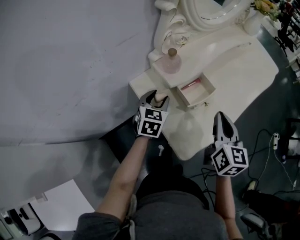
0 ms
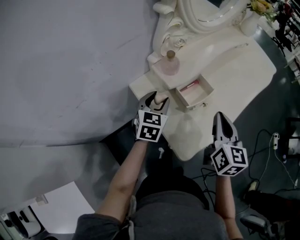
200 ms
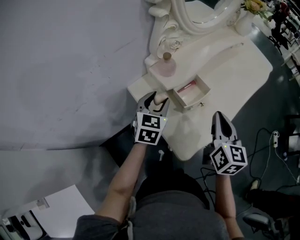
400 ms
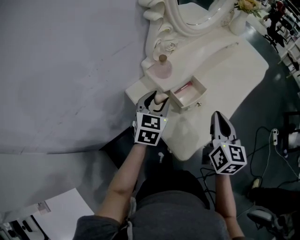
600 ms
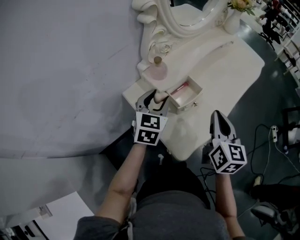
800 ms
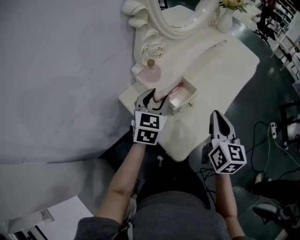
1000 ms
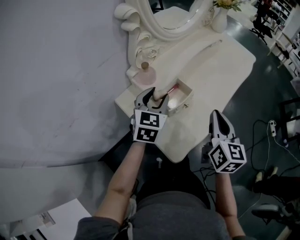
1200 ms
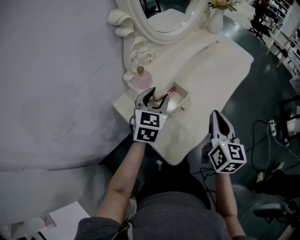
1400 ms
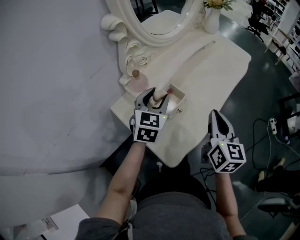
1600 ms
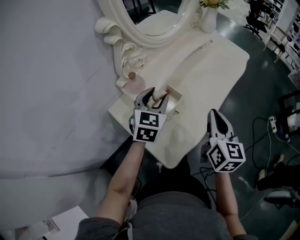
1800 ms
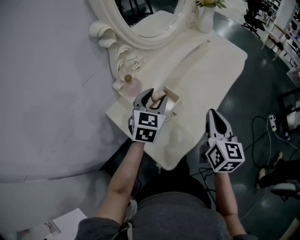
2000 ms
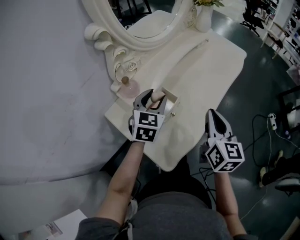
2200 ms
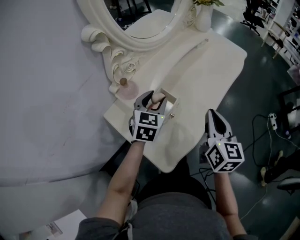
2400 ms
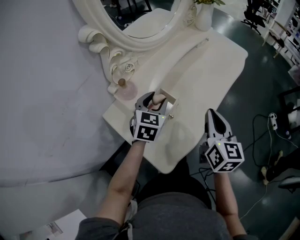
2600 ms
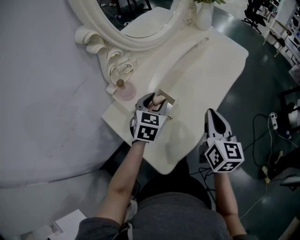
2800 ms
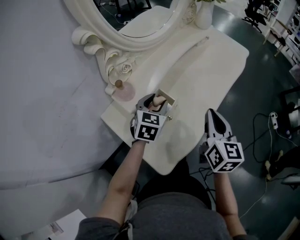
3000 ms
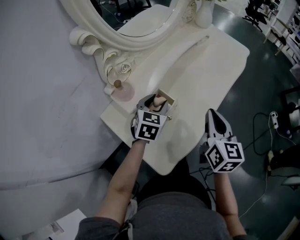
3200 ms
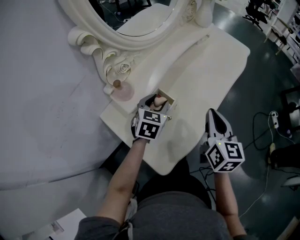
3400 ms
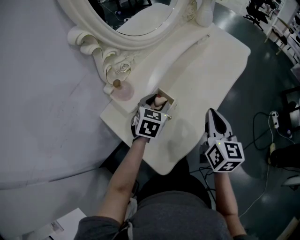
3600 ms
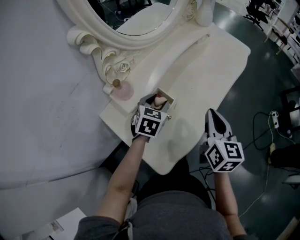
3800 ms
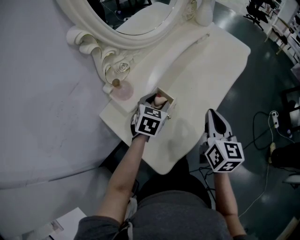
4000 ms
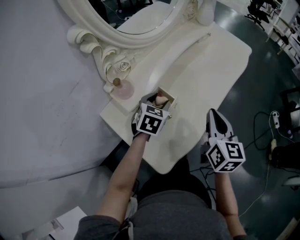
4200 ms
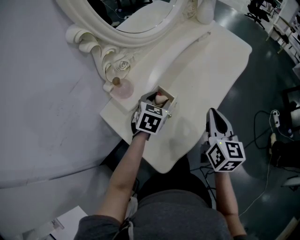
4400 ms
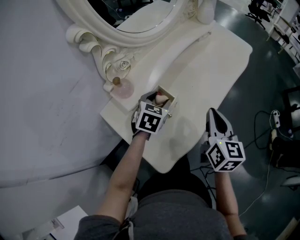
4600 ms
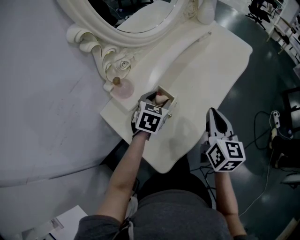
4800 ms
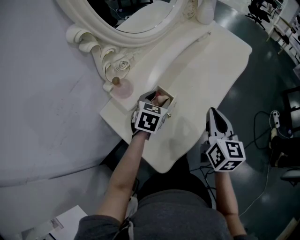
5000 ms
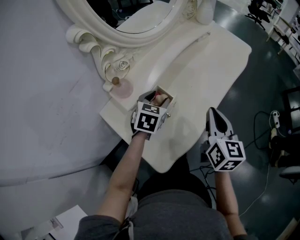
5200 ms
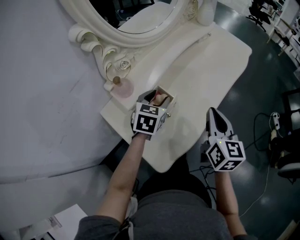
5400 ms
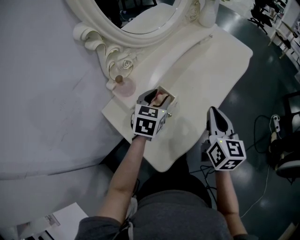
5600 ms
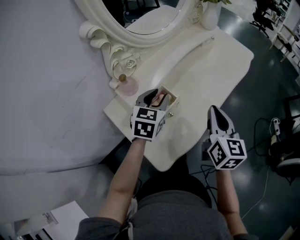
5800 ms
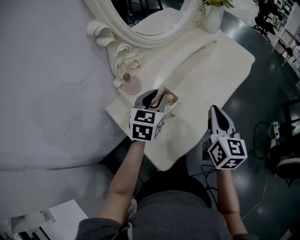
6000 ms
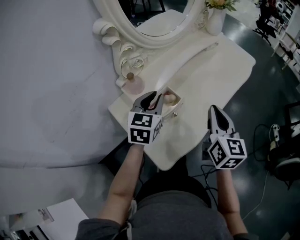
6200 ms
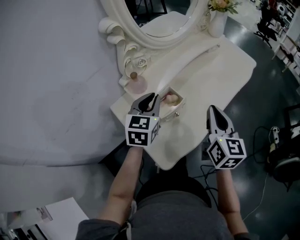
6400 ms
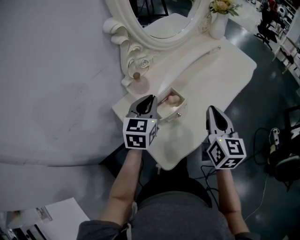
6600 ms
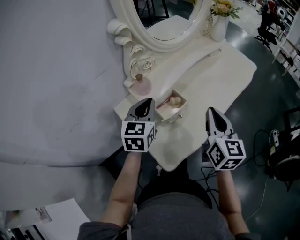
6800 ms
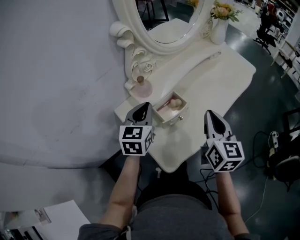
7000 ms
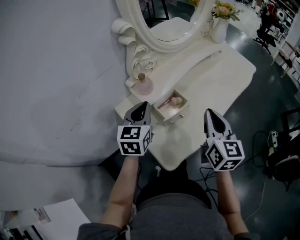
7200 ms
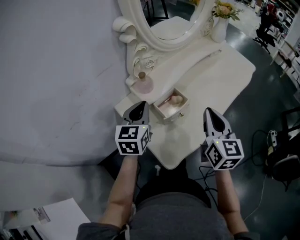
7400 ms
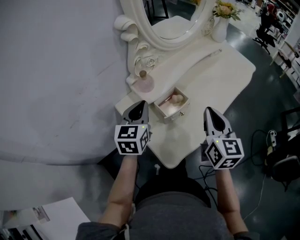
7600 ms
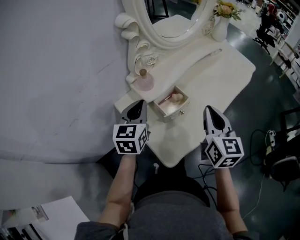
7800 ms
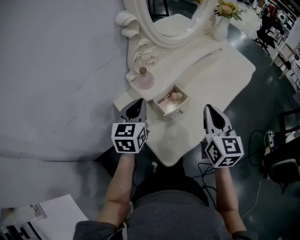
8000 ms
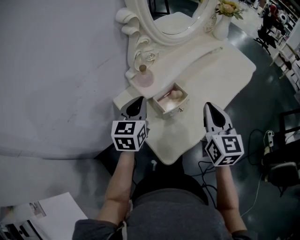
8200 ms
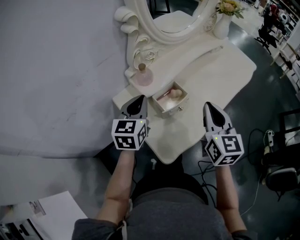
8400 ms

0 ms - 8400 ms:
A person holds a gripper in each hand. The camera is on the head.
0 ms - 1400 ms: The right gripper moves to the right, about 5 cm. The left gripper shifts some 15 cm upward and to the right.
1400 ms - 2800 ms: The right gripper moves forward, about 5 cm, while the left gripper is displaced downward, forward and to the right by about 10 cm.
2800 ms - 4200 ms: The grippers move only a little.
4200 ms - 5600 ms: The left gripper heads upward, covering about 5 cm.
5600 ms - 7000 ms: The left gripper goes roughly 15 cm to the left, backward and upward, rotates roughly 20 degrees, and closes up, while the right gripper heads to the left, covering approximately 5 cm.
7000 ms - 8400 ms: The grippers stay close to where they were, moving slightly.

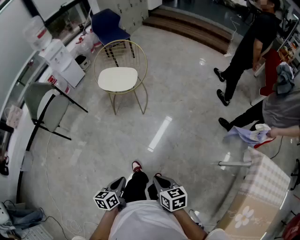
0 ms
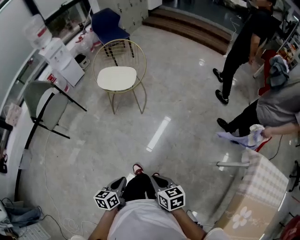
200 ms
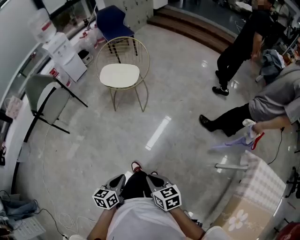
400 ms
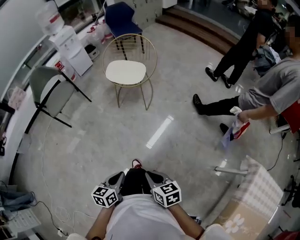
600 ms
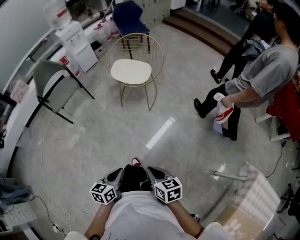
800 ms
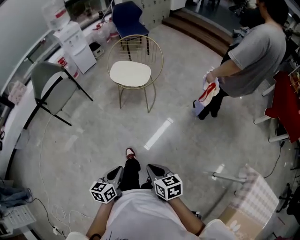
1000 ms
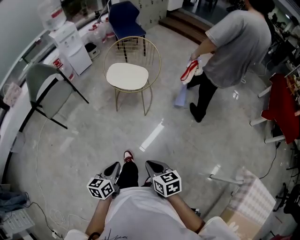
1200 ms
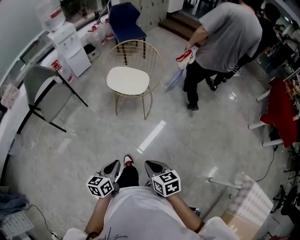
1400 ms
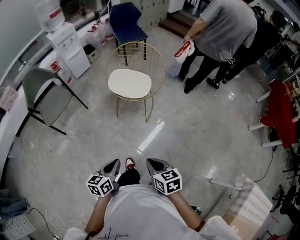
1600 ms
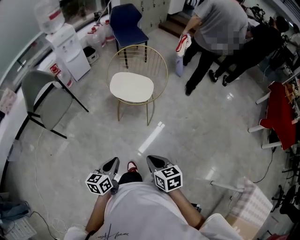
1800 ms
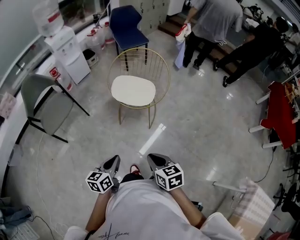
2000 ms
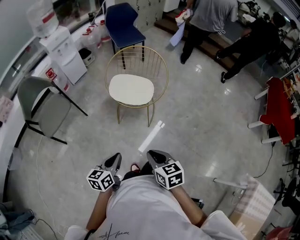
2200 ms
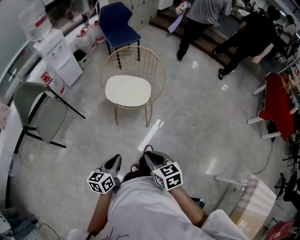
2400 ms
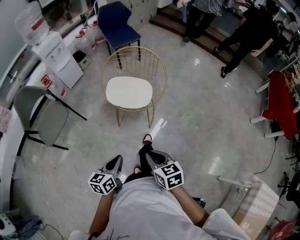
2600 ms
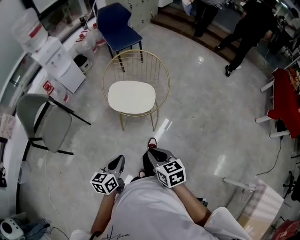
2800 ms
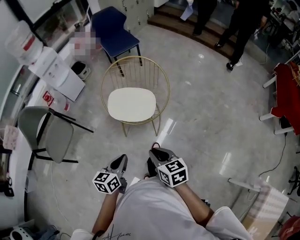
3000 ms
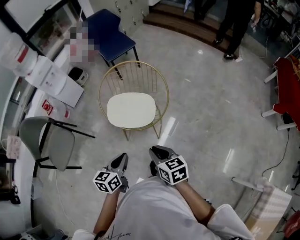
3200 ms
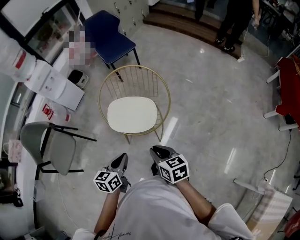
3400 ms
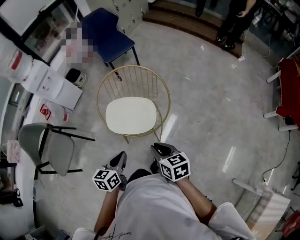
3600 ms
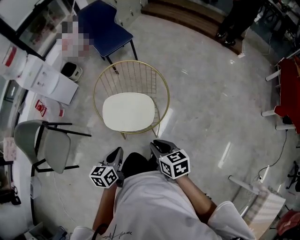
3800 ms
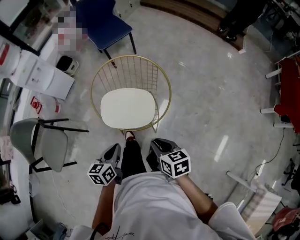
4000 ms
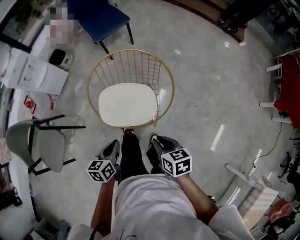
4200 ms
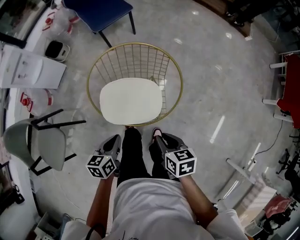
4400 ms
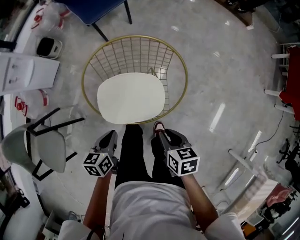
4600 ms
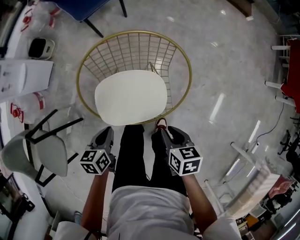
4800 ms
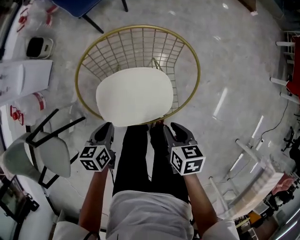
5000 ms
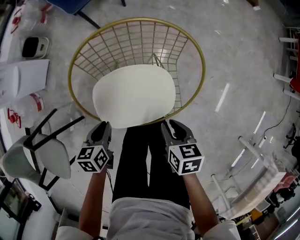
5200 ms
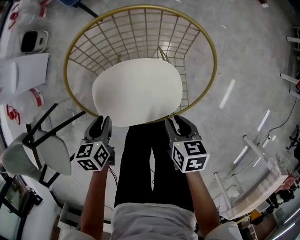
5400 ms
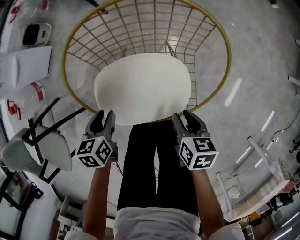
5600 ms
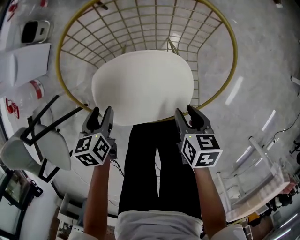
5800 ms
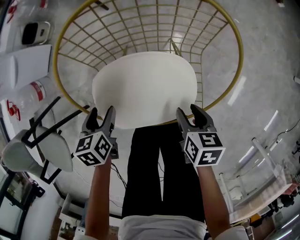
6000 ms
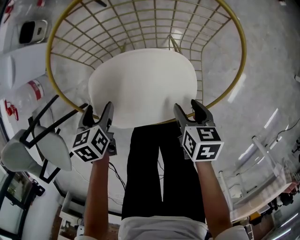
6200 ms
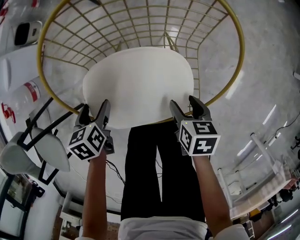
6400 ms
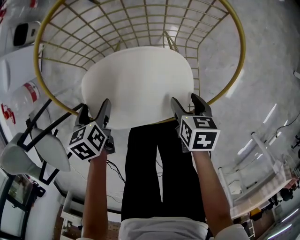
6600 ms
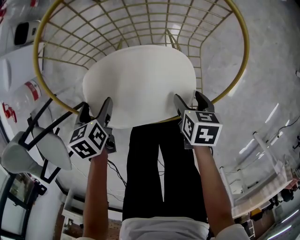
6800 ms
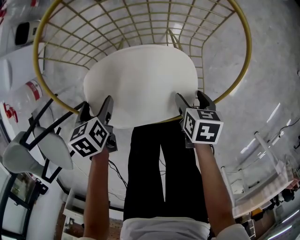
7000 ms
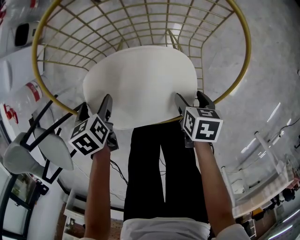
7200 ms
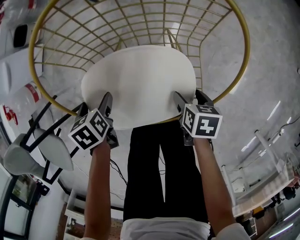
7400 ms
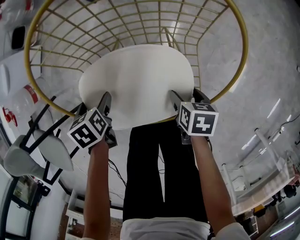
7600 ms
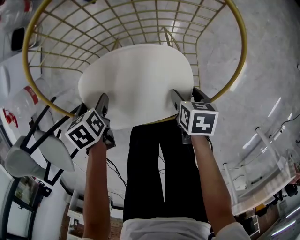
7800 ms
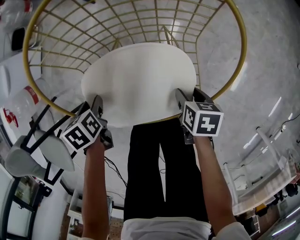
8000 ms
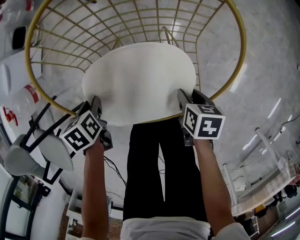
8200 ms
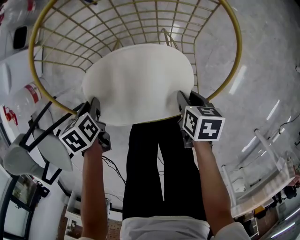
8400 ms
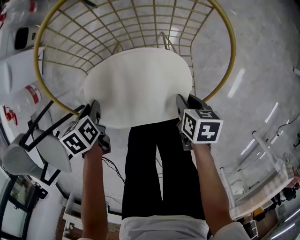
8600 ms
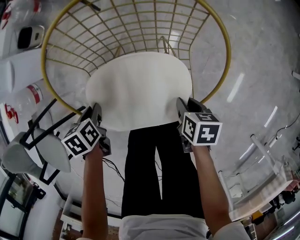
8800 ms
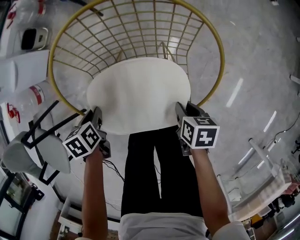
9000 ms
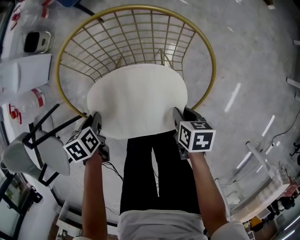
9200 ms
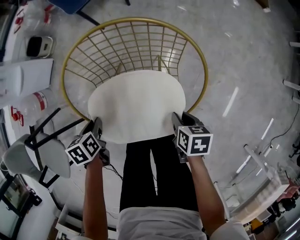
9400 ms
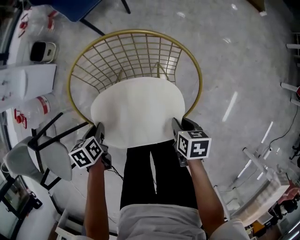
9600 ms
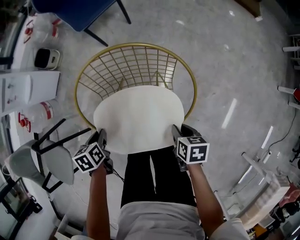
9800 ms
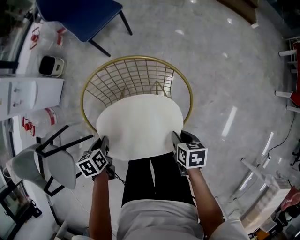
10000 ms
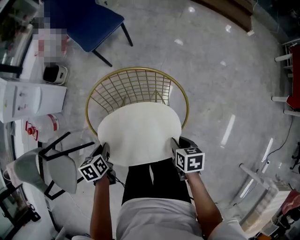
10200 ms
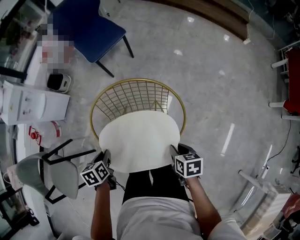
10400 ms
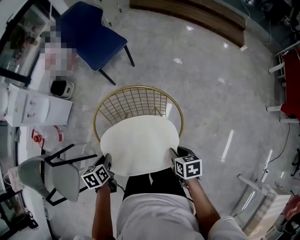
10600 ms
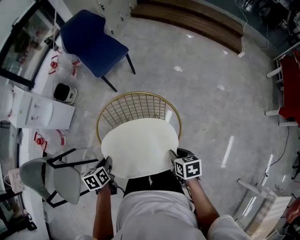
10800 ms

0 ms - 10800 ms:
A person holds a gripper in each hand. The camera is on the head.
0 ms - 1600 ms: The left gripper travels forward by about 25 cm. Meanwhile the right gripper shifts about 25 cm forward and to the left.
1600 ms - 3000 ms: Both grippers travel together forward, some 30 cm.
3000 ms - 4600 ms: The two grippers go approximately 35 cm forward and downward. The right gripper changes its angle by some 30 degrees.
4600 ms - 6200 ms: The grippers both shift downward and forward by approximately 25 cm. The right gripper opens. Meanwhile the left gripper changes its angle by about 20 degrees, and opens.
6200 ms - 7800 ms: The right gripper travels downward by about 10 cm.
7800 ms - 9200 ms: Both grippers travel together upward, roughly 10 cm. The right gripper closes its fingers. Meanwhile the left gripper closes up.
9200 ms - 10800 ms: The grippers both shift upward by some 25 cm.

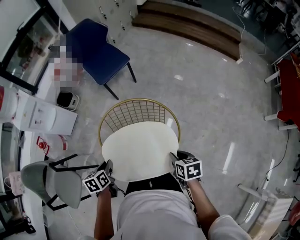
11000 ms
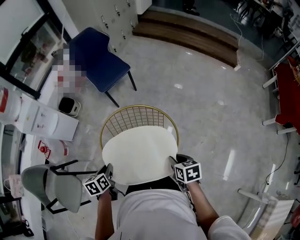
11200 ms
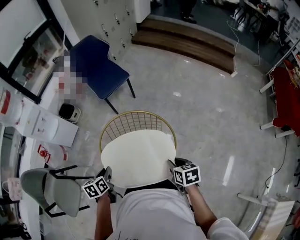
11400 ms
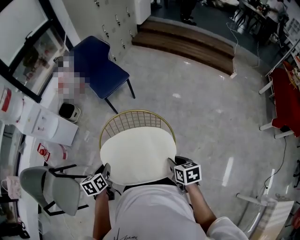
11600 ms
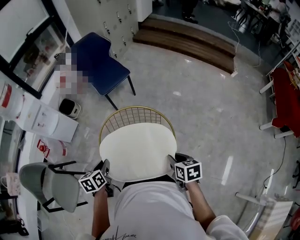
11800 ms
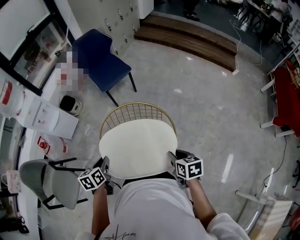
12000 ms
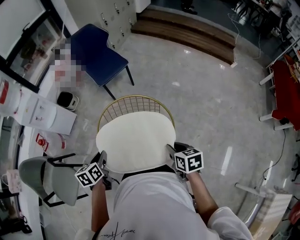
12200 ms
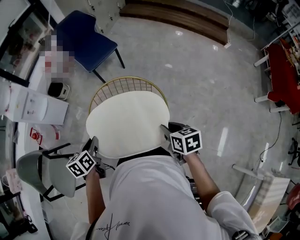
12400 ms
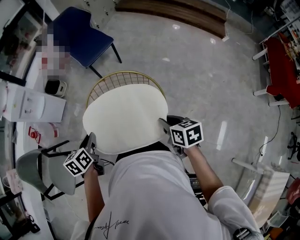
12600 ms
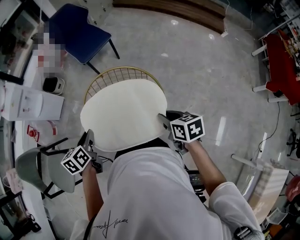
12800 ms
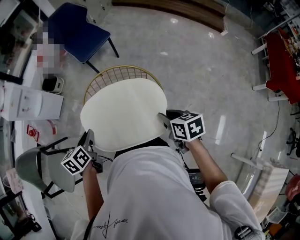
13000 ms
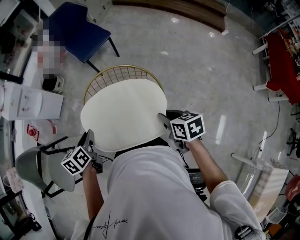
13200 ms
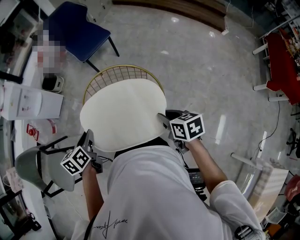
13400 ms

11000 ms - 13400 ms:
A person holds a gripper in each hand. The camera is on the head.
11000 ms - 12200 ms: Both grippers move upward, about 5 cm.
12200 ms - 13400 ms: There are only small adjustments of the grippers.

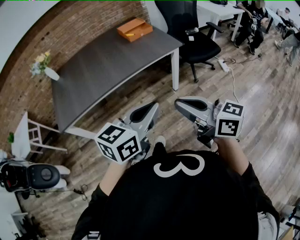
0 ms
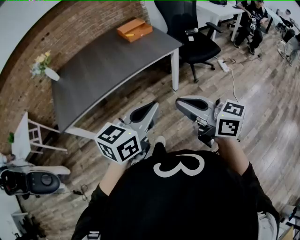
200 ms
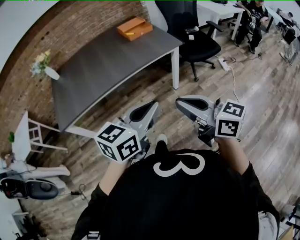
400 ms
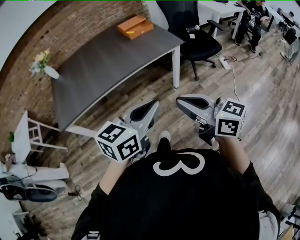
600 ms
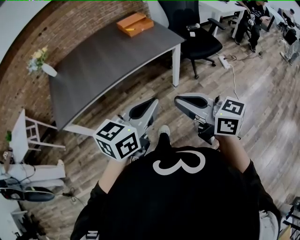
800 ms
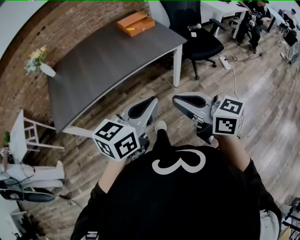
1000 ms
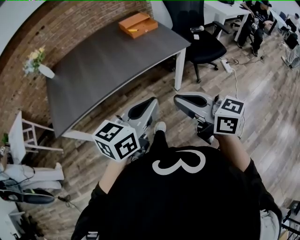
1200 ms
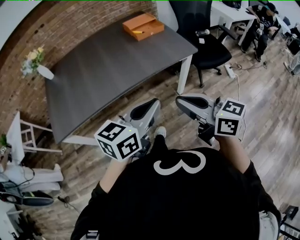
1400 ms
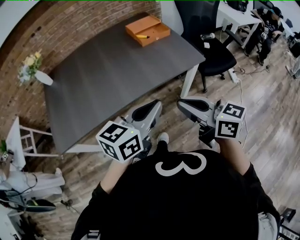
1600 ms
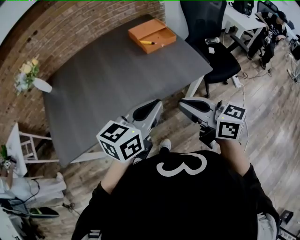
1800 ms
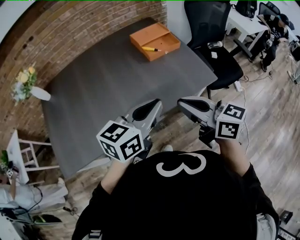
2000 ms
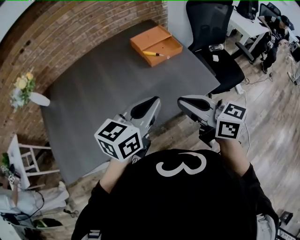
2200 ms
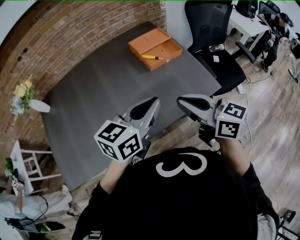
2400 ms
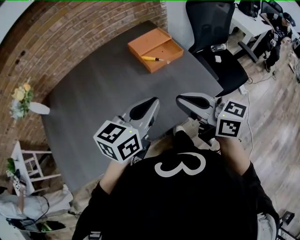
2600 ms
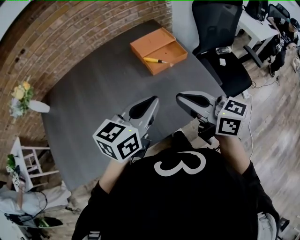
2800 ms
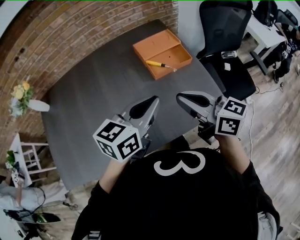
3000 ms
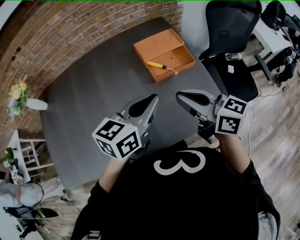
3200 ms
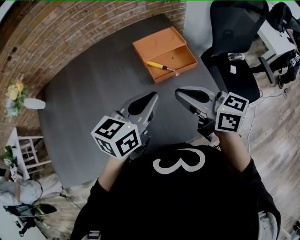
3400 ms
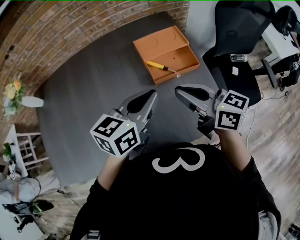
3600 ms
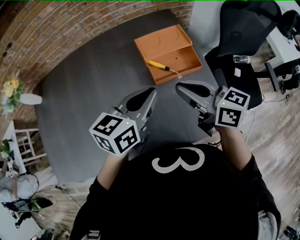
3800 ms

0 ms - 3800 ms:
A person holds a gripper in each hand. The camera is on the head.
0 ms - 1200 ms: The grippers both shift forward by roughly 10 cm.
1200 ms - 2600 ms: The pair of grippers is taken forward, some 40 cm.
2600 ms - 3800 ms: Both grippers move forward, roughly 20 cm.
